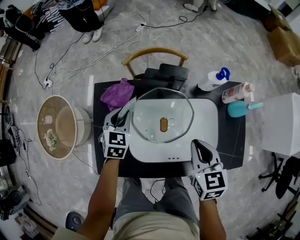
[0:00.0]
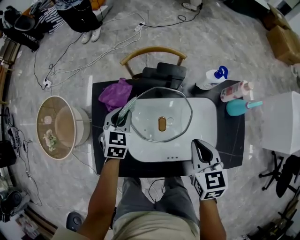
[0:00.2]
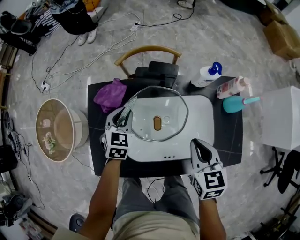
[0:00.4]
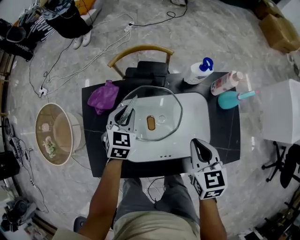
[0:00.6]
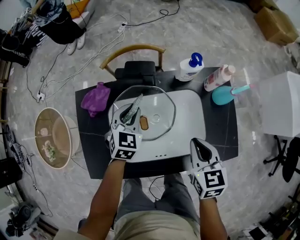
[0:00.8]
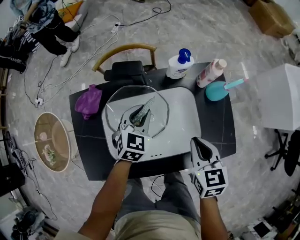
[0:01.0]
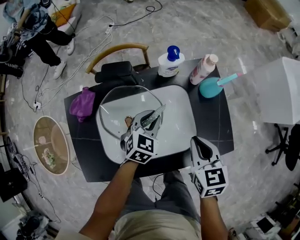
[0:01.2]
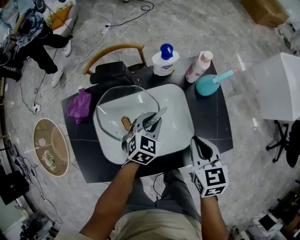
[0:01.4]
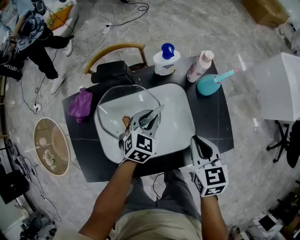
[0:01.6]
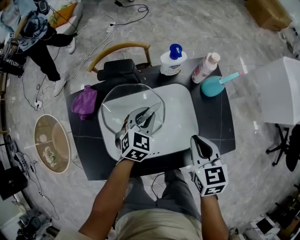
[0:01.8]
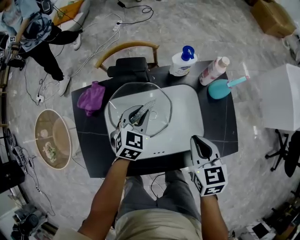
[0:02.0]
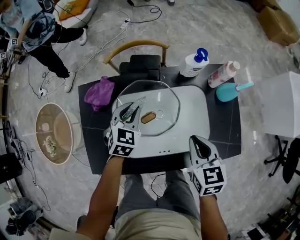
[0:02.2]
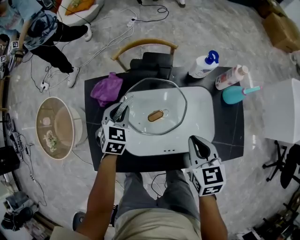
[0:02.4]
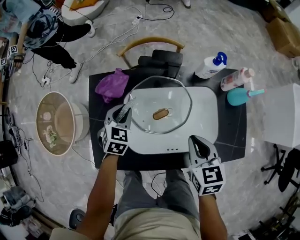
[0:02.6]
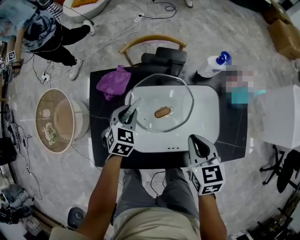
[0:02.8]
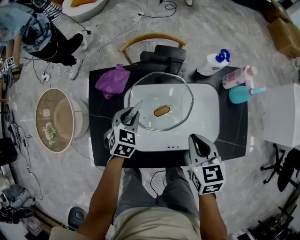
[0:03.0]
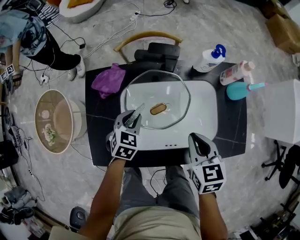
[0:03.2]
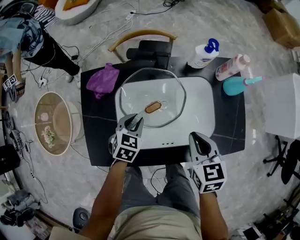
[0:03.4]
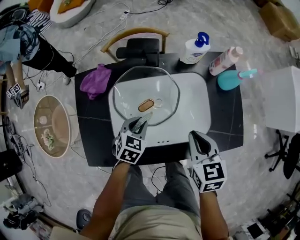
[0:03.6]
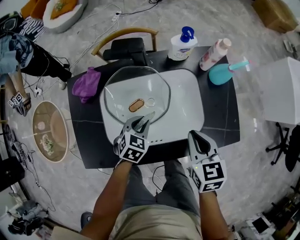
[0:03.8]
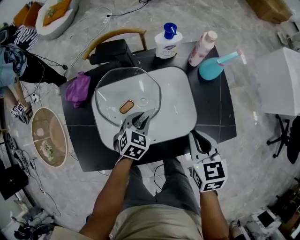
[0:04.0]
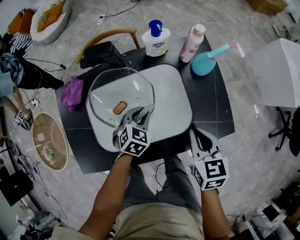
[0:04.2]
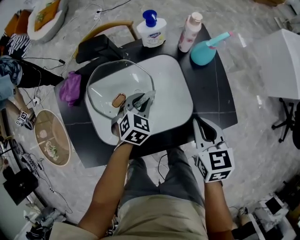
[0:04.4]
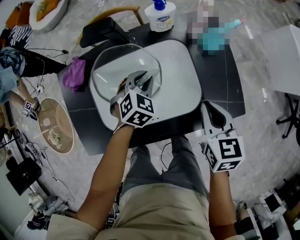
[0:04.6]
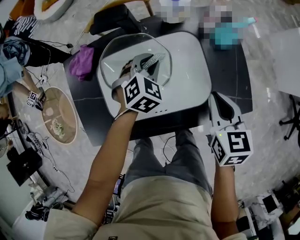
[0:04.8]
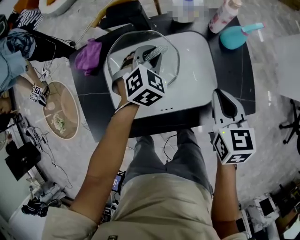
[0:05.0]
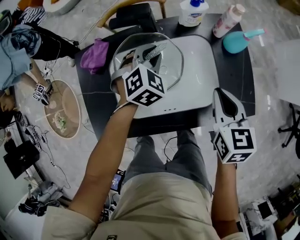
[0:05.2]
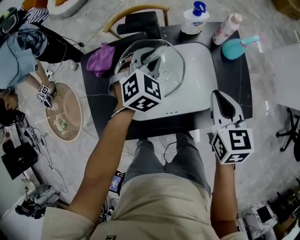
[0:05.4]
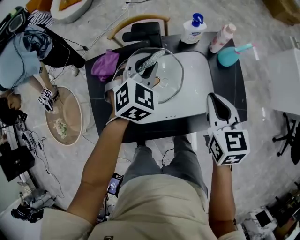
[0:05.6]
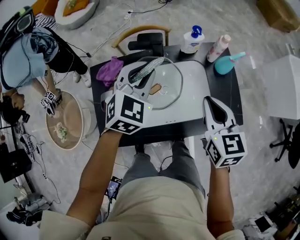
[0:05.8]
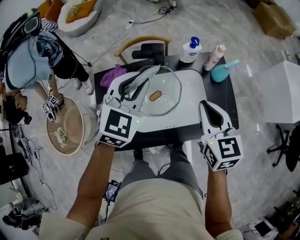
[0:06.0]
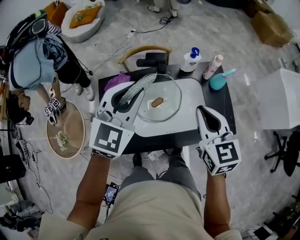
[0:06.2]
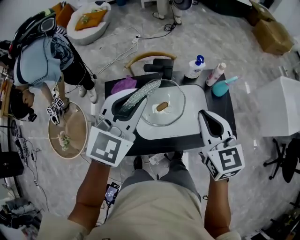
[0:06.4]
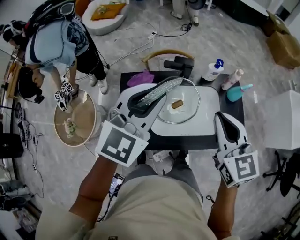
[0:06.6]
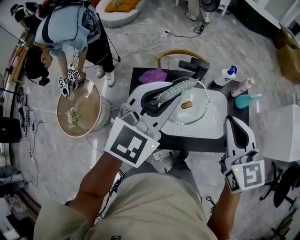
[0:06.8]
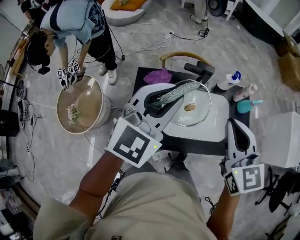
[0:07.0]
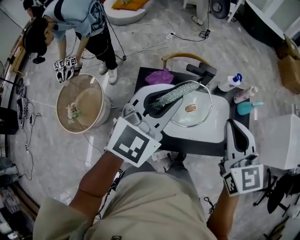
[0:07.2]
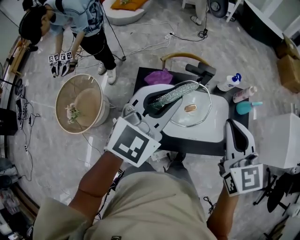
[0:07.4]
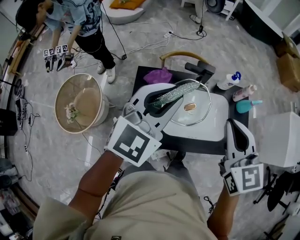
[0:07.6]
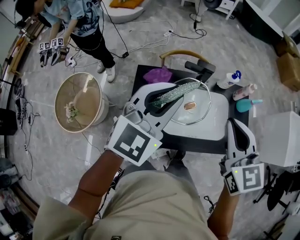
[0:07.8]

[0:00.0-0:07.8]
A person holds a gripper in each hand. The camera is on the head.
0:00.0 to 0:01.6: The left gripper heads to the right, covering roughly 30 cm, and changes its angle by approximately 30 degrees; the right gripper travels to the right by about 15 cm.
0:01.6 to 0:03.2: The left gripper heads to the left, covering approximately 20 cm. Meanwhile the right gripper is displaced to the left by roughly 15 cm.
0:03.2 to 0:04.6: Both grippers move to the right, roughly 20 cm. The left gripper changes its angle by roughly 30 degrees.
0:04.6 to 0:06.2: The left gripper is displaced upward by approximately 35 cm, and angles its fingers upward, by roughly 30 degrees; the right gripper is displaced upward and to the left by approximately 25 cm, and swivels roughly 20 degrees.
0:06.2 to 0:07.8: The right gripper heads to the left and upward, covering some 15 cm. Meanwhile the left gripper travels to the left, upward and backward by some 10 cm.

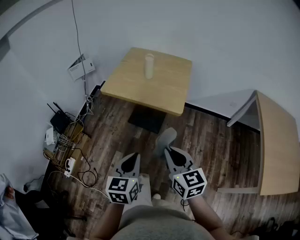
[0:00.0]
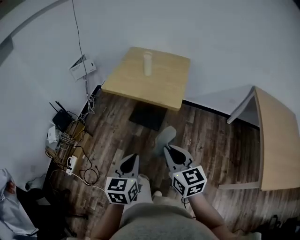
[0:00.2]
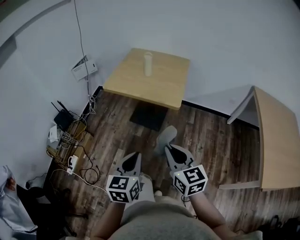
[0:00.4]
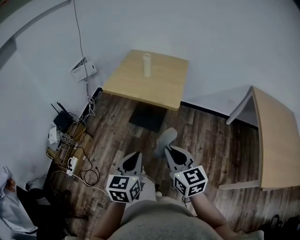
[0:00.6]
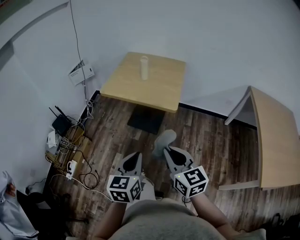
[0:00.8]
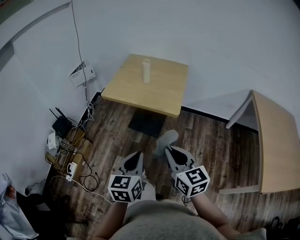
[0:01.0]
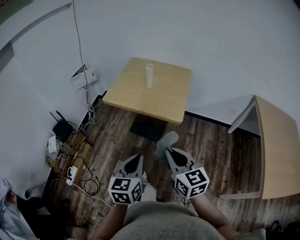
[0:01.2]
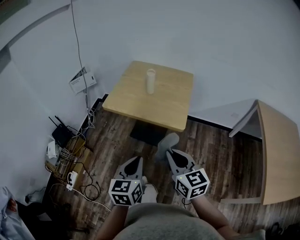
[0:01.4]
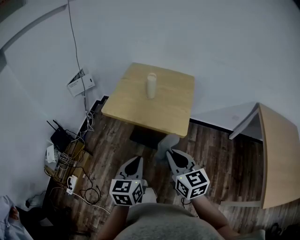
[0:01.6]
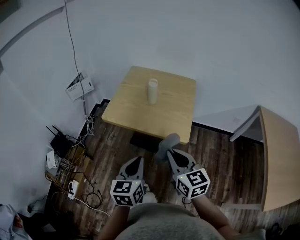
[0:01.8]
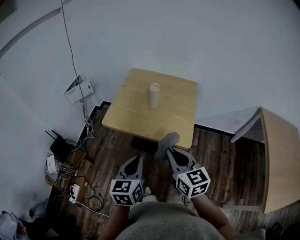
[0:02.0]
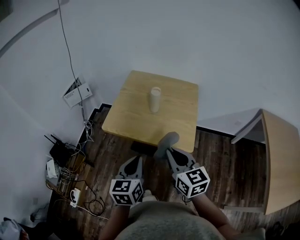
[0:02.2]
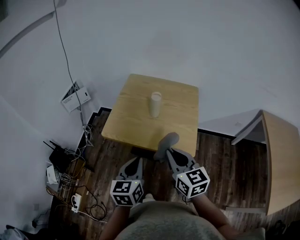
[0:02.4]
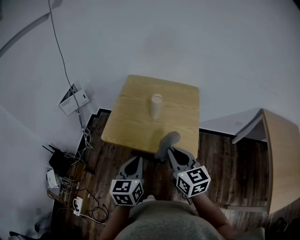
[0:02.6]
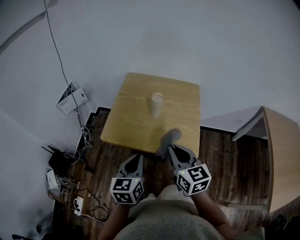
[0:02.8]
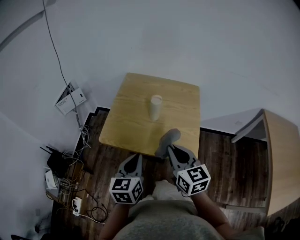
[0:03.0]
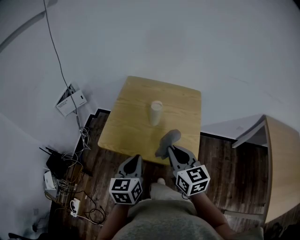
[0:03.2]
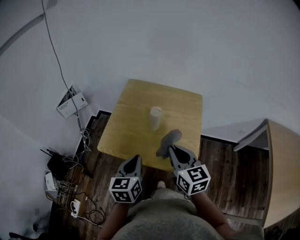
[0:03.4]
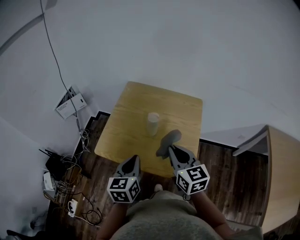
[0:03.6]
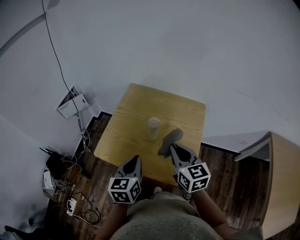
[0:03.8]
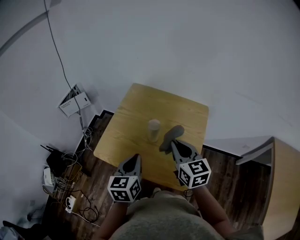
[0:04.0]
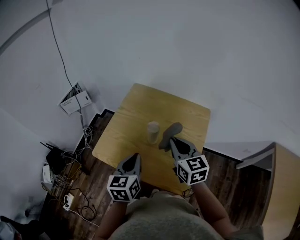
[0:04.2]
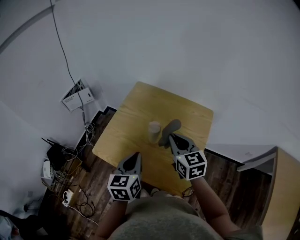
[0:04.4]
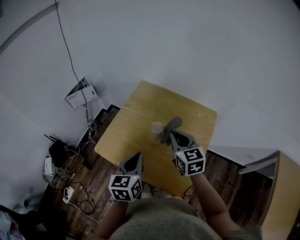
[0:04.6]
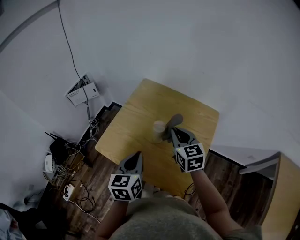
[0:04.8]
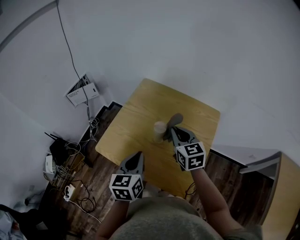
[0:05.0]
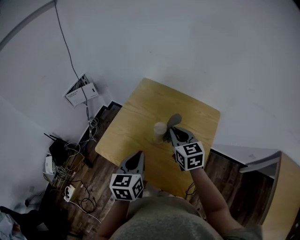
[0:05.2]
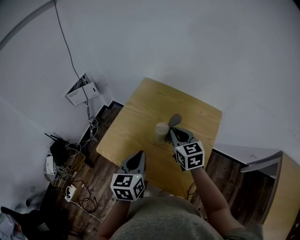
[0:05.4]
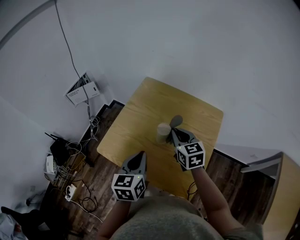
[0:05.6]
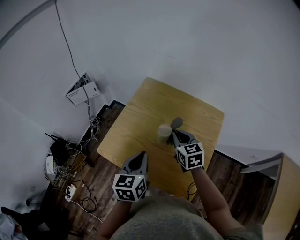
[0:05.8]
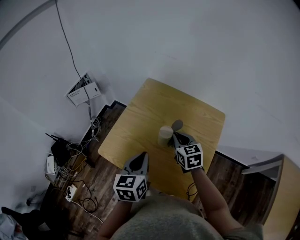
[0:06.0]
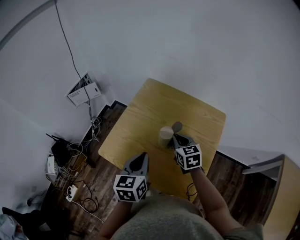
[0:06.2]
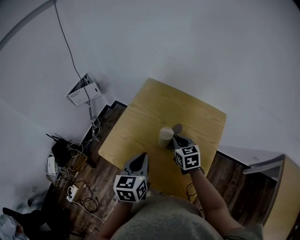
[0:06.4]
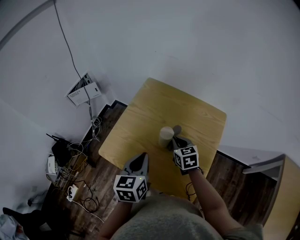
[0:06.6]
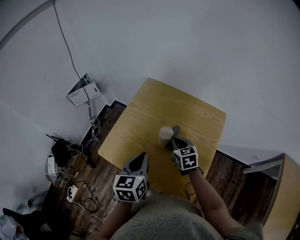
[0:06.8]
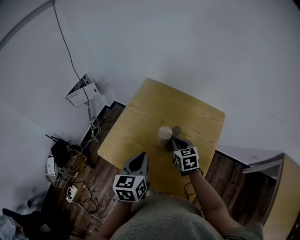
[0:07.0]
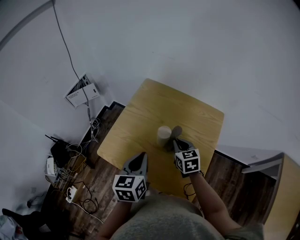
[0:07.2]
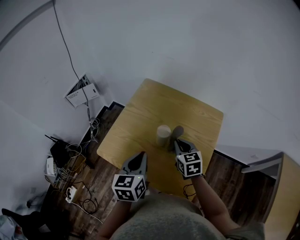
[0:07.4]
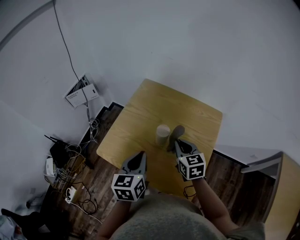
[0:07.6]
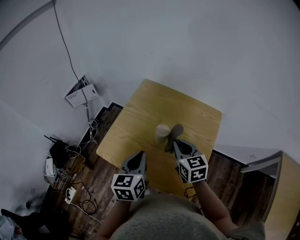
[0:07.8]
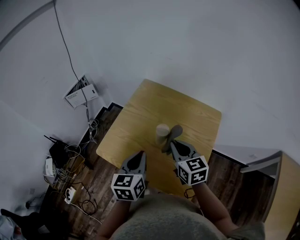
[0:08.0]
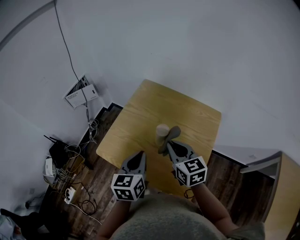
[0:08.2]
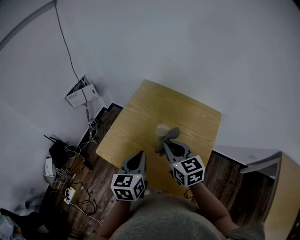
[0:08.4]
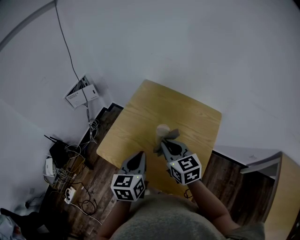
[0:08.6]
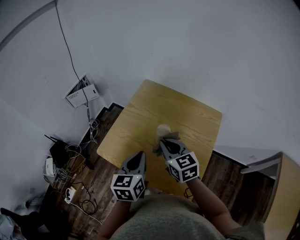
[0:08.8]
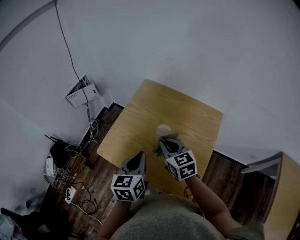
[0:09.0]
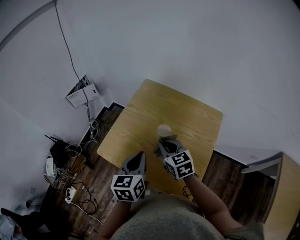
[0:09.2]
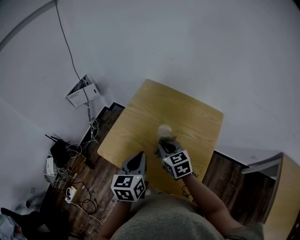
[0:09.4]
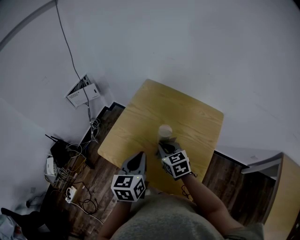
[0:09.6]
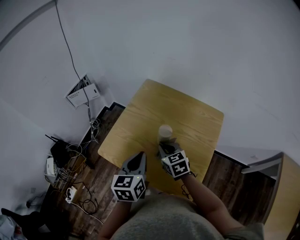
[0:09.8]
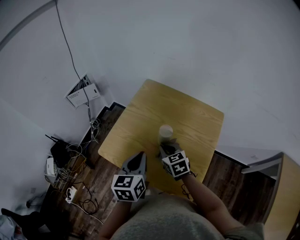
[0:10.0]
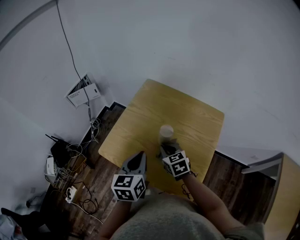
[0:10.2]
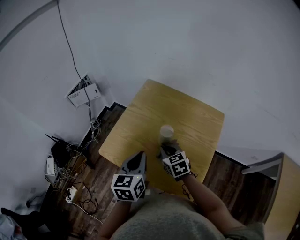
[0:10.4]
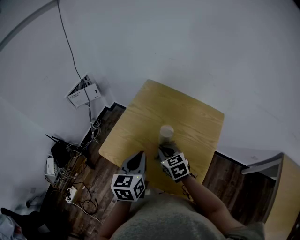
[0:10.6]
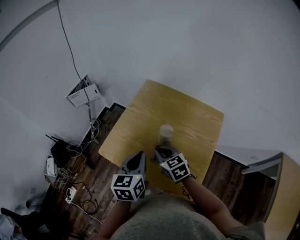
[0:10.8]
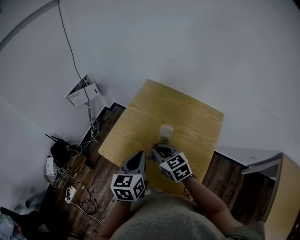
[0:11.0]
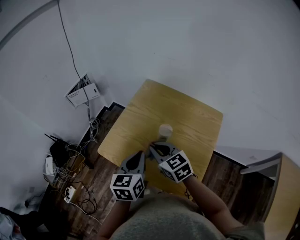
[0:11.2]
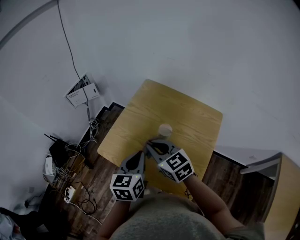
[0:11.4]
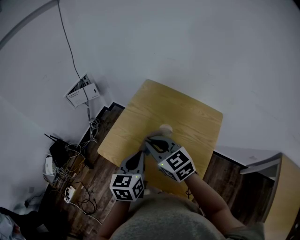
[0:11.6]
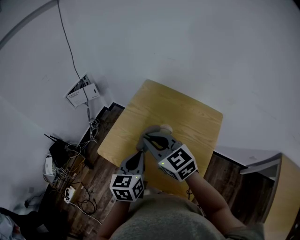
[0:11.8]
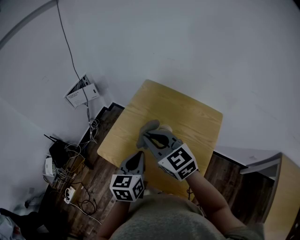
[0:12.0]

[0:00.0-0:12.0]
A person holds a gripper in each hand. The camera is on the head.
0:00.0 to 0:01.6: Both grippers travel together forward, approximately 10 cm.
0:01.6 to 0:03.0: Both grippers move forward, approximately 20 cm.
0:03.0 to 0:04.4: The left gripper moves forward and to the right, roughly 15 cm, while the right gripper shifts some 20 cm forward.
0:04.4 to 0:06.0: The right gripper shifts approximately 10 cm downward and forward.
0:06.0 to 0:07.6: The grippers move only a little.
0:07.6 to 0:09.0: The right gripper is displaced to the left by about 10 cm.
0:09.0 to 0:10.4: The right gripper heads downward, covering approximately 10 cm.
0:10.4 to 0:12.0: The right gripper moves upward, some 20 cm, and swivels roughly 30 degrees.

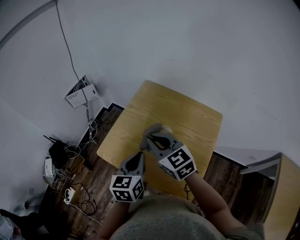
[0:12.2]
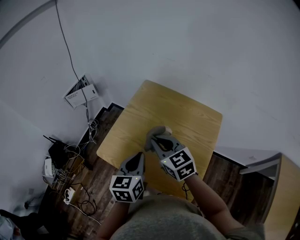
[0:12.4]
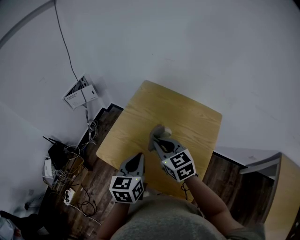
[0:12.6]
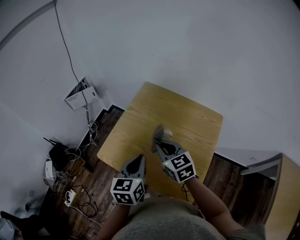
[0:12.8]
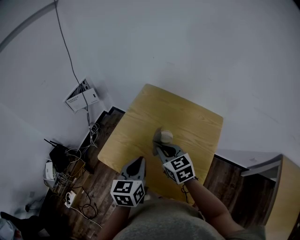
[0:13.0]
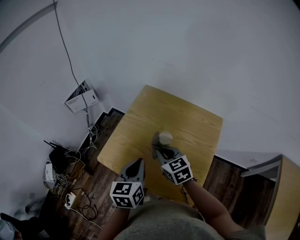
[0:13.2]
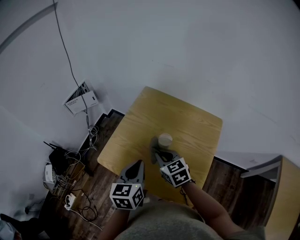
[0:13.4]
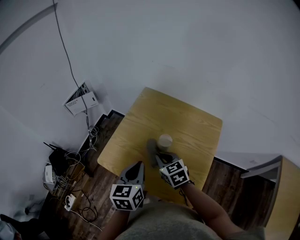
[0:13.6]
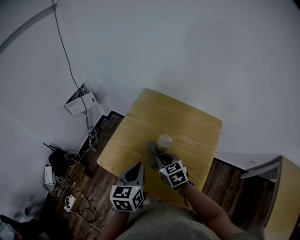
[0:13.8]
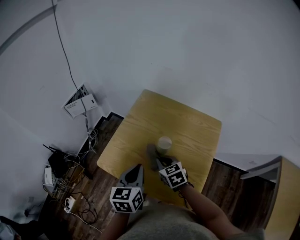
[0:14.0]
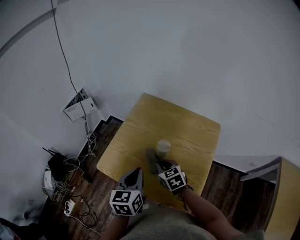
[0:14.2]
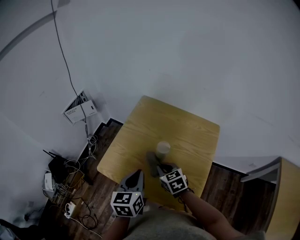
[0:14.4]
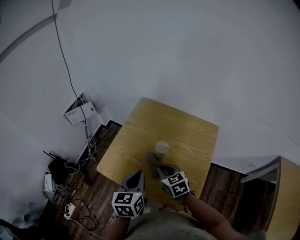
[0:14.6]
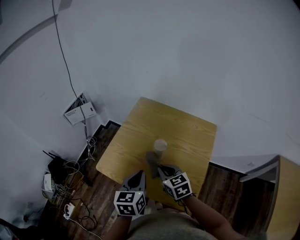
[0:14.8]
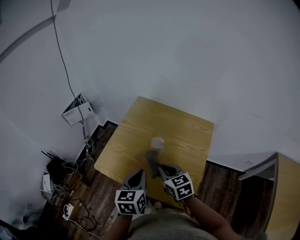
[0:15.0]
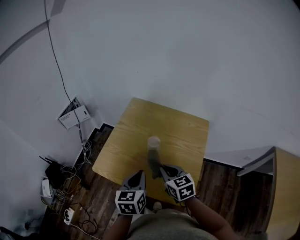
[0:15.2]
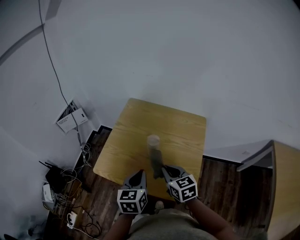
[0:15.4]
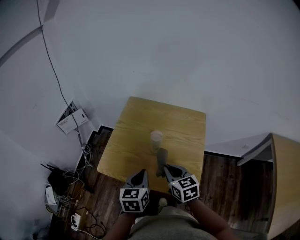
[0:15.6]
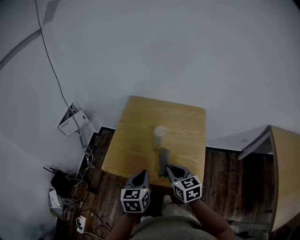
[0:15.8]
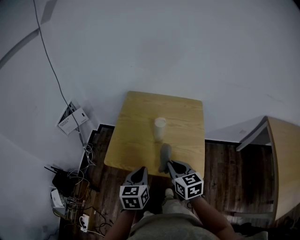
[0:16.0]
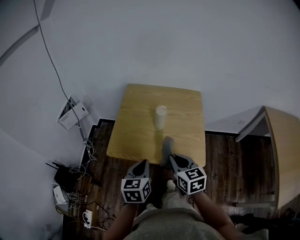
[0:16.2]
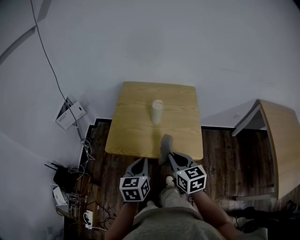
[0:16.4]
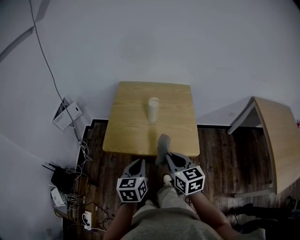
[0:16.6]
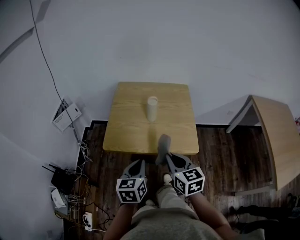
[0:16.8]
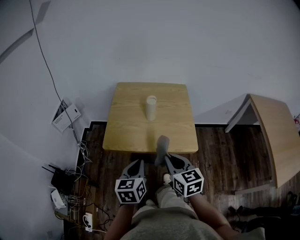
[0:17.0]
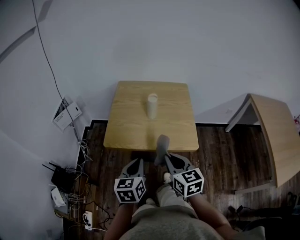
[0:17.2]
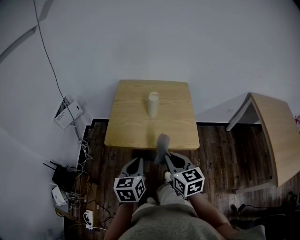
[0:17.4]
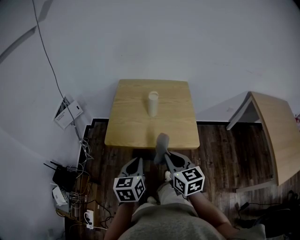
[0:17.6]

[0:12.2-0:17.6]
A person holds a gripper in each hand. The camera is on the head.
0:12.2 to 0:13.6: The right gripper is displaced downward by roughly 15 cm.
0:13.6 to 0:15.0: The right gripper shifts about 5 cm backward.
0:15.0 to 0:16.2: The right gripper is displaced backward by about 15 cm, and turns by approximately 20 degrees, while the left gripper is displaced backward and to the left by about 10 cm.
0:16.2 to 0:17.6: Both grippers move backward, some 10 cm.
